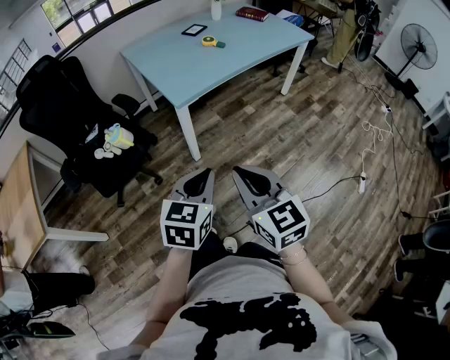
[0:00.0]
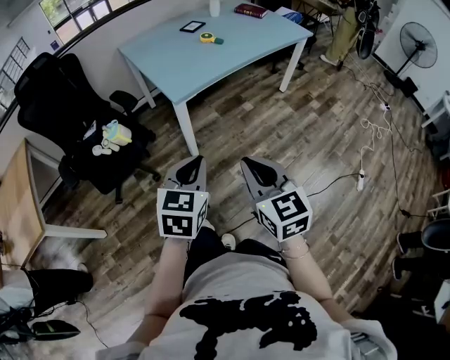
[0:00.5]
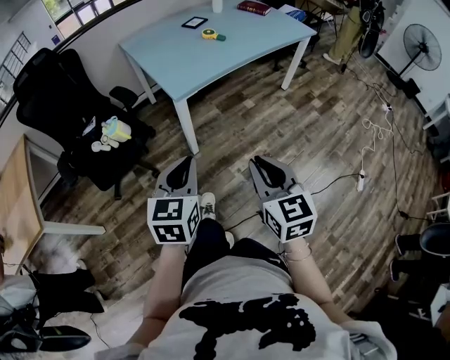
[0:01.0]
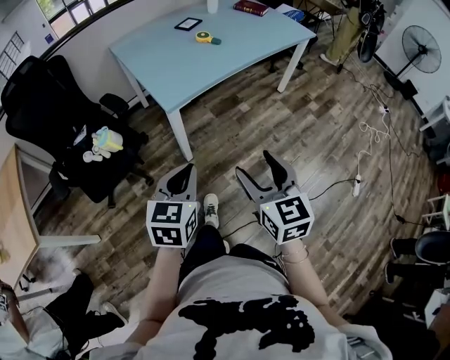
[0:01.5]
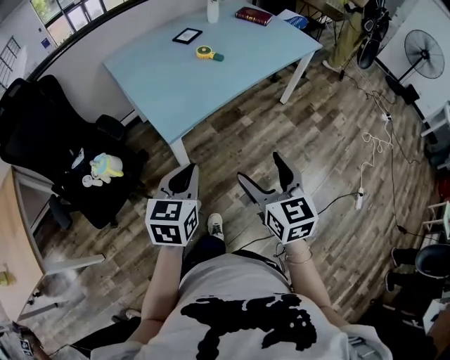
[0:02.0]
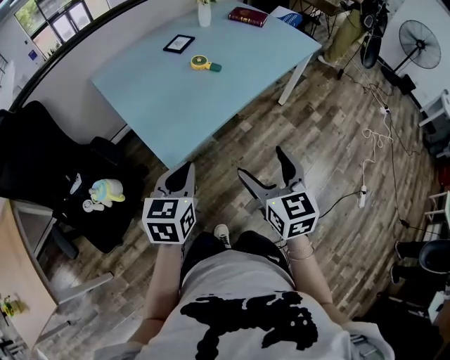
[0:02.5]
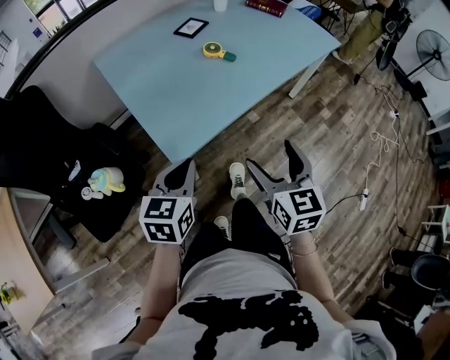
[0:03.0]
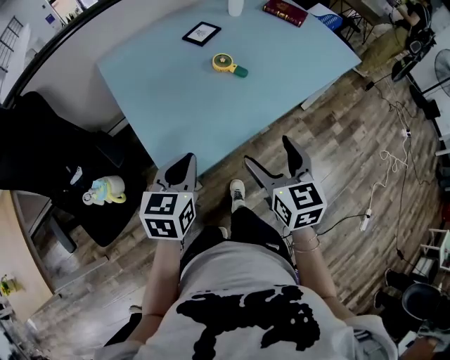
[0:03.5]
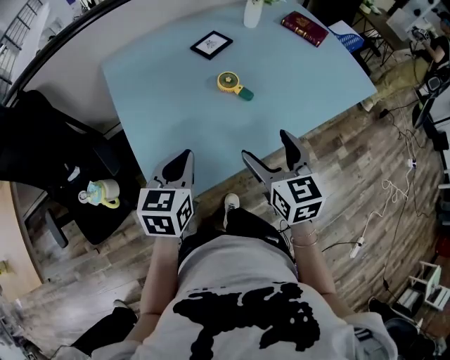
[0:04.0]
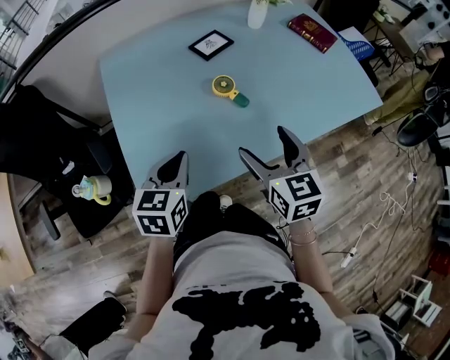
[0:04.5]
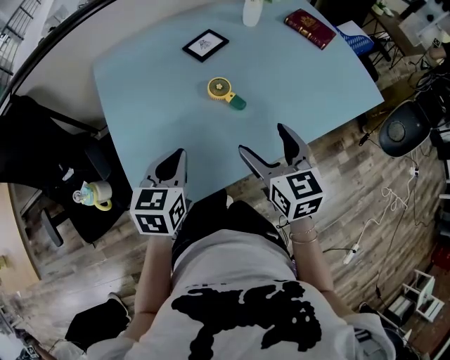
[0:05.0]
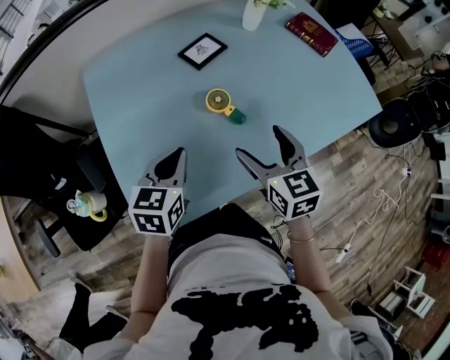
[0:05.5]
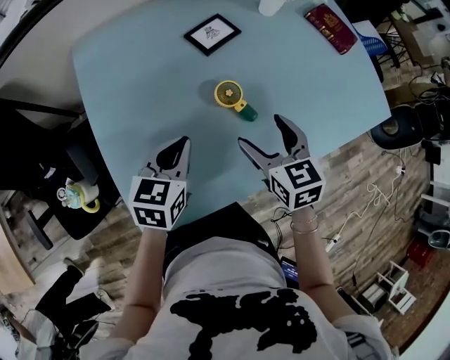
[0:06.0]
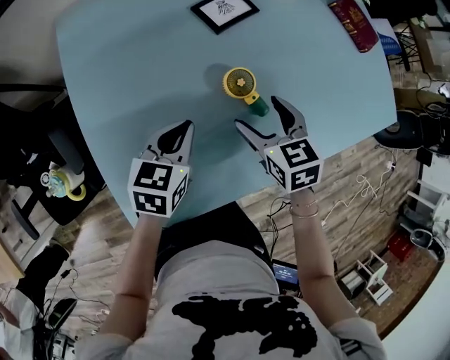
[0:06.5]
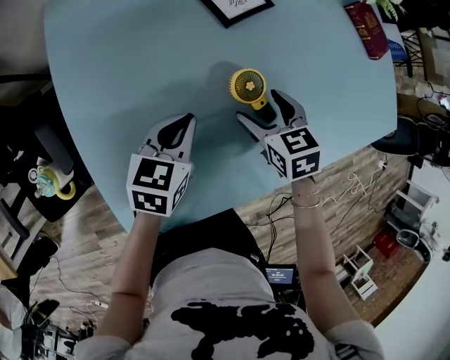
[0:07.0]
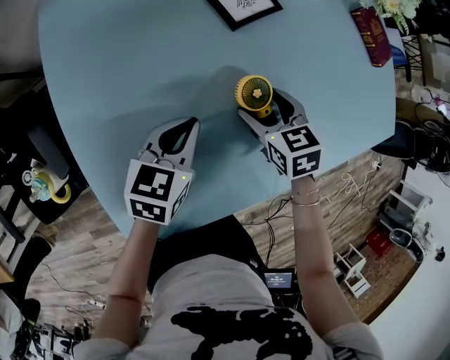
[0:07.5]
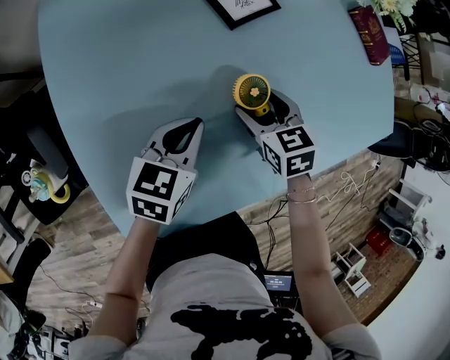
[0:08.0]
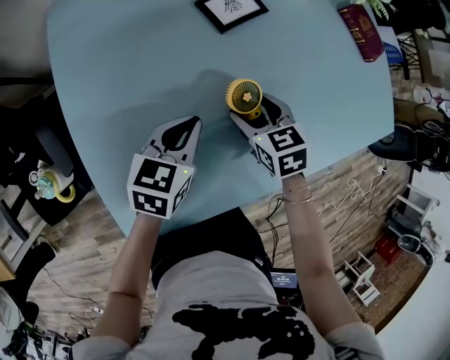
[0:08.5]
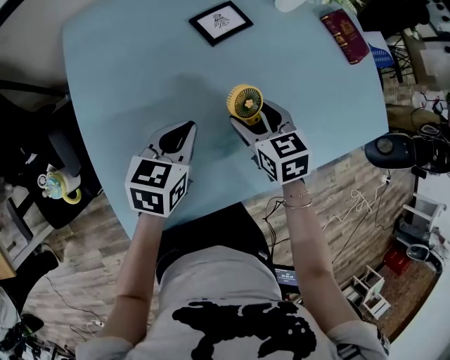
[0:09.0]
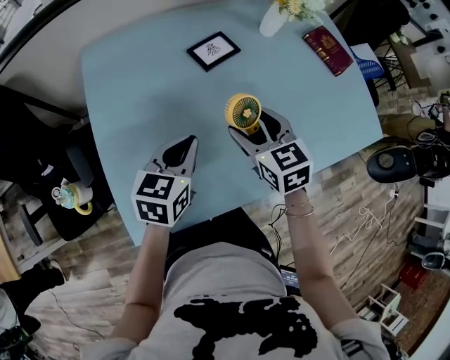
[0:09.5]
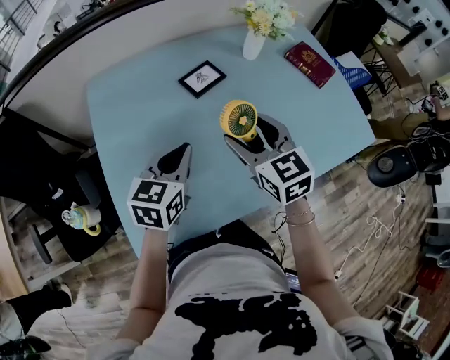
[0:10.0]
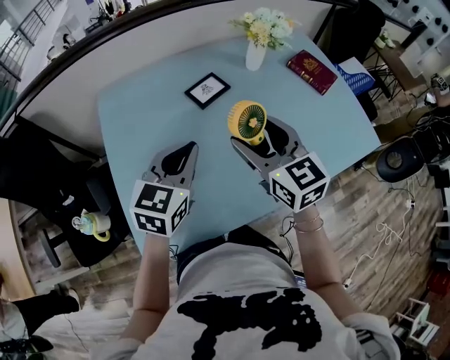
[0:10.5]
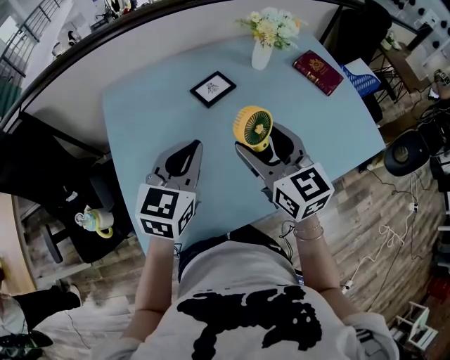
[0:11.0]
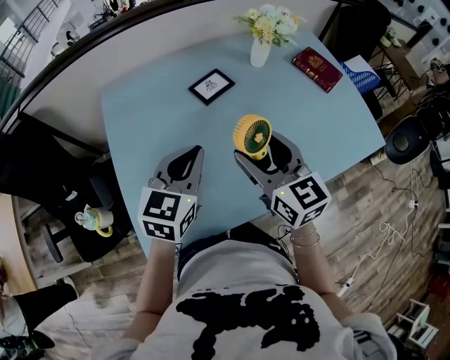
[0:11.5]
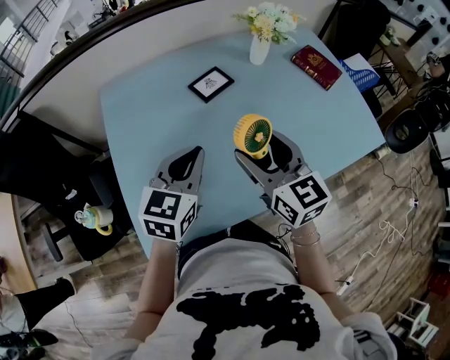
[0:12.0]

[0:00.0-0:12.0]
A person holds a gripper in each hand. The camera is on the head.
0:00.0 to 0:02.0: The two grippers go roughly 20 cm forward. The right gripper opens its fingers.
0:02.0 to 0:04.0: The grippers both shift forward by roughly 35 cm.
0:04.0 to 0:06.0: Both grippers move forward and downward, about 20 cm.
0:06.0 to 0:08.0: The right gripper shifts roughly 15 cm downward and forward. The left gripper goes about 10 cm downward and forward.
0:08.0 to 0:10.0: Both grippers travel together upward, some 20 cm. The right gripper points its fingers approximately 30 degrees further upward.
0:10.0 to 0:12.0: The left gripper ends up about 5 cm from where it was. The right gripper moves approximately 5 cm.

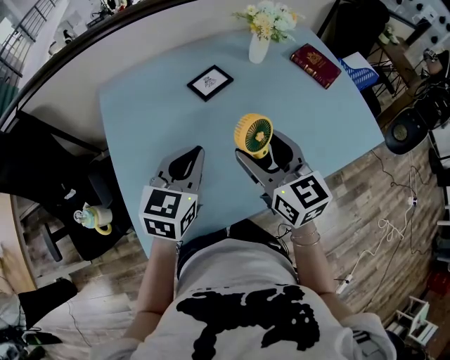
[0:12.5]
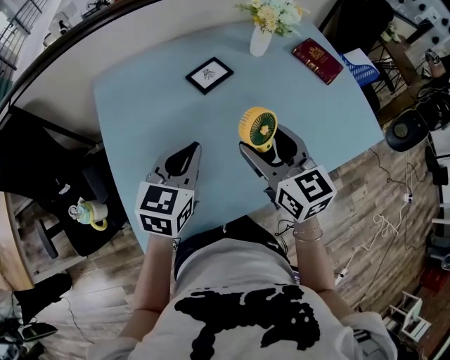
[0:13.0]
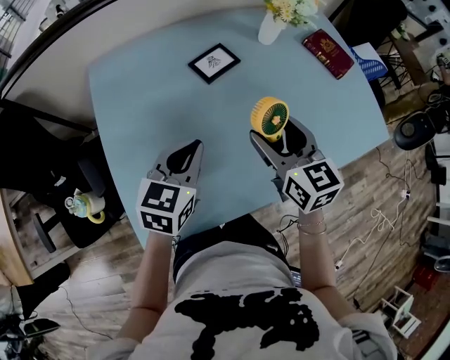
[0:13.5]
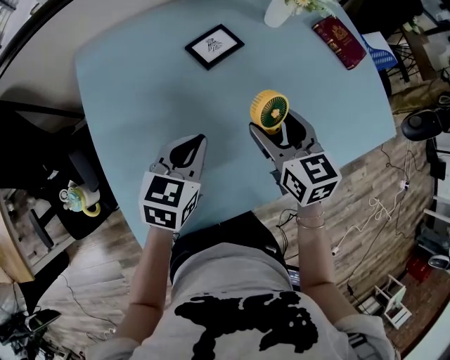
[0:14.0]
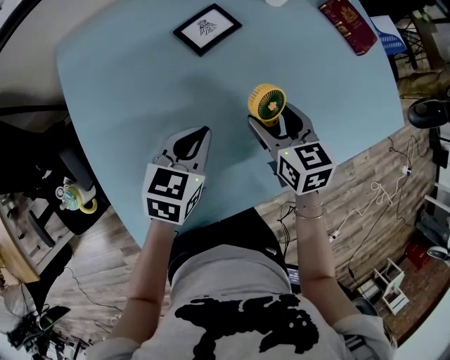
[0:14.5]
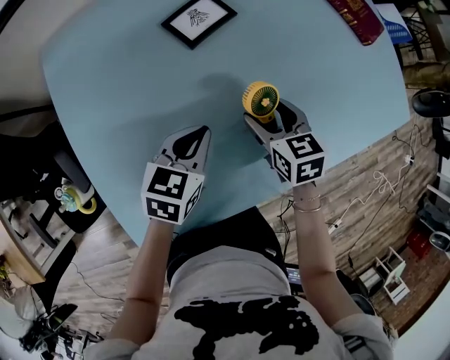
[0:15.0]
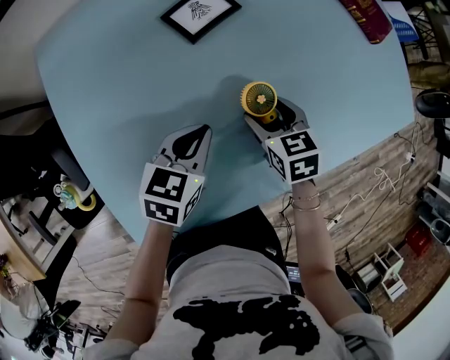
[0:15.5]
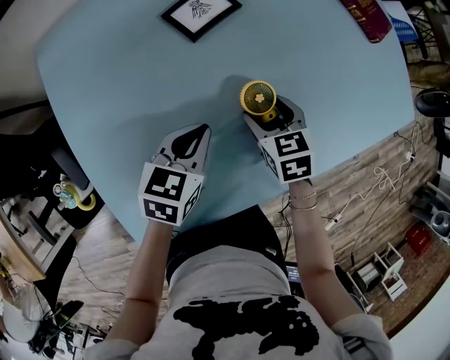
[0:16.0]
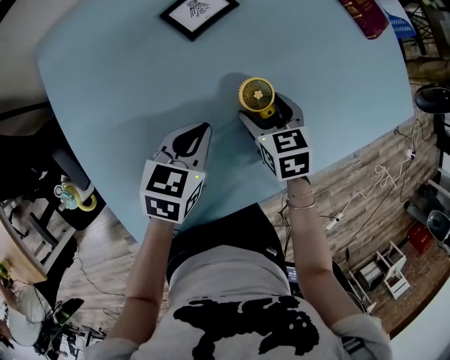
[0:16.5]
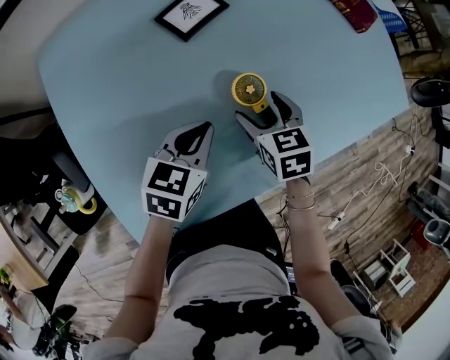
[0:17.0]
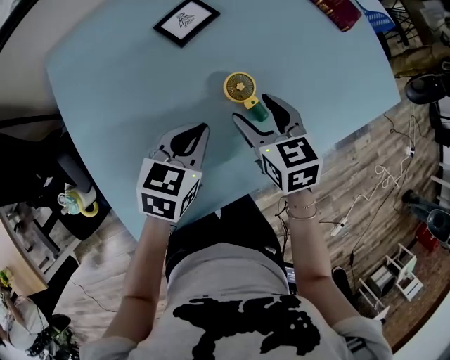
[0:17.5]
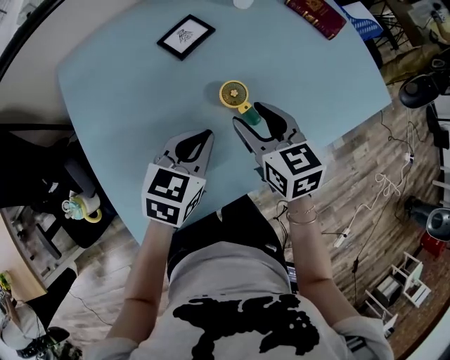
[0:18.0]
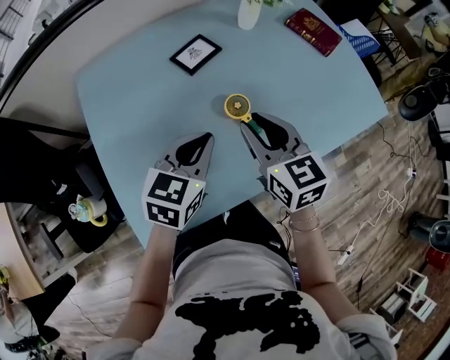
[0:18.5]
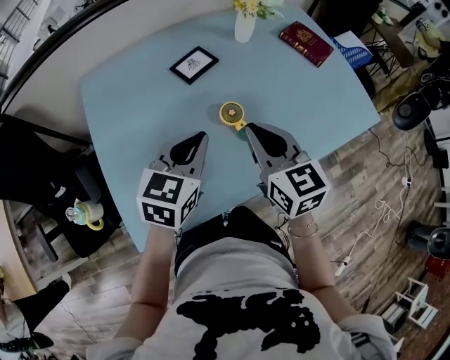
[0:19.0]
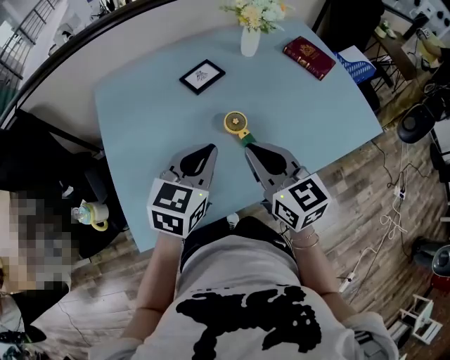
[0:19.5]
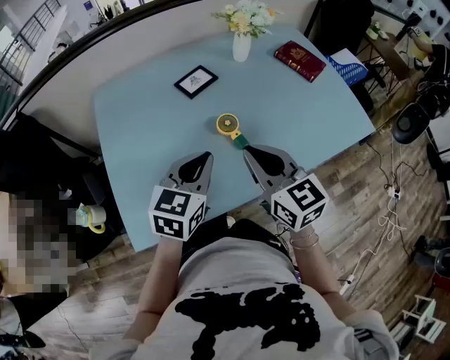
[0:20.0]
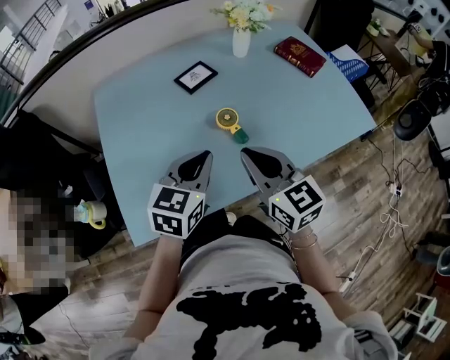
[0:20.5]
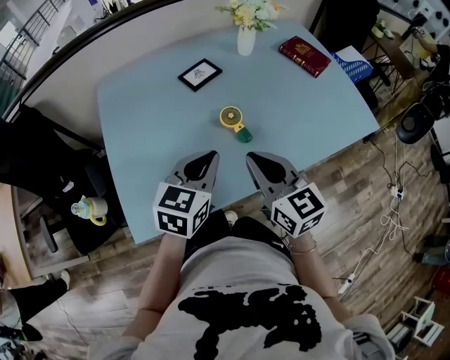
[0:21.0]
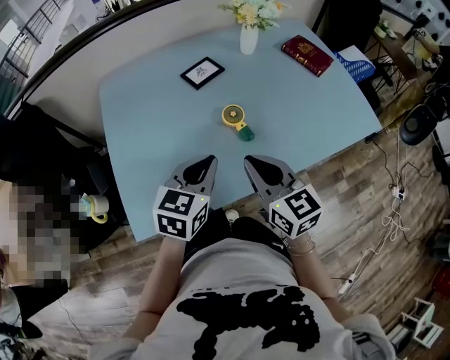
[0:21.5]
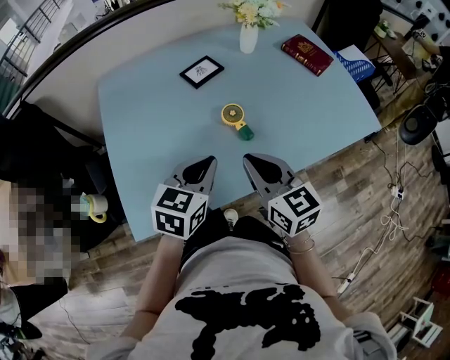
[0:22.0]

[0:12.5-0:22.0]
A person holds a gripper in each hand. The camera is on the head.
0:12.5 to 0:14.5: Both grippers move downward and forward, about 20 cm. The right gripper swivels roughly 30 degrees. The left gripper turns by some 20 degrees.
0:14.5 to 0:16.5: The right gripper shifts some 10 cm downward.
0:16.5 to 0:18.0: The right gripper is displaced upward by some 15 cm, and rotates approximately 20 degrees; the left gripper heads upward, covering some 10 cm.
0:18.0 to 0:20.0: Both grippers travel together upward and backward, roughly 15 cm. The right gripper turns by approximately 20 degrees, and closes.
0:20.0 to 0:22.0: The grippers move only a little.

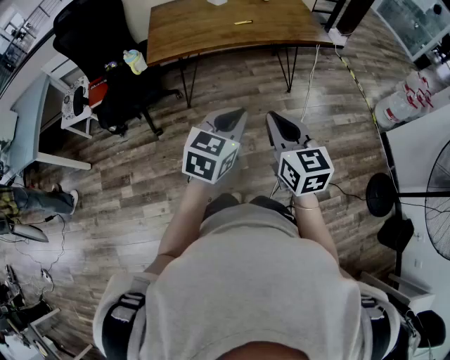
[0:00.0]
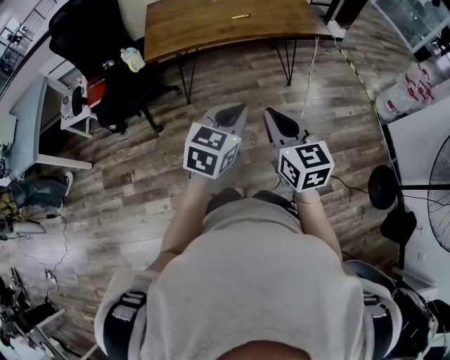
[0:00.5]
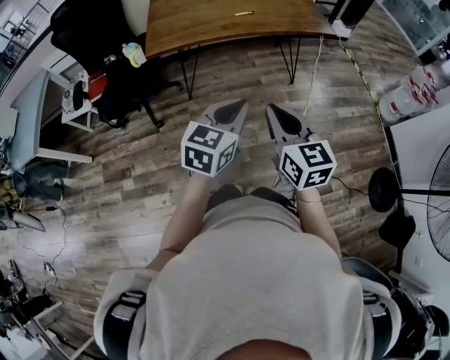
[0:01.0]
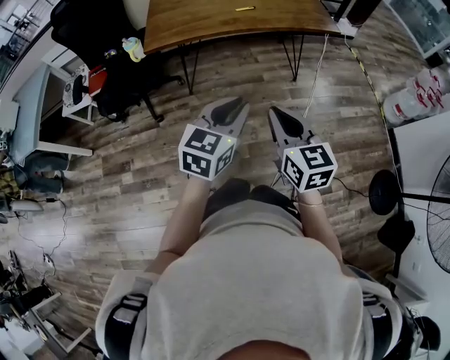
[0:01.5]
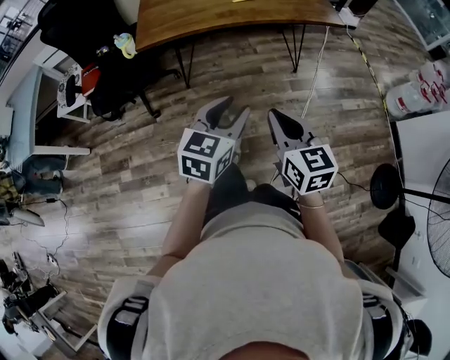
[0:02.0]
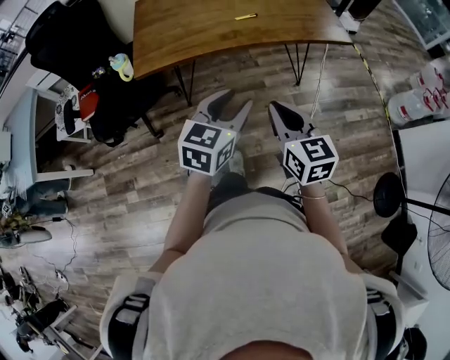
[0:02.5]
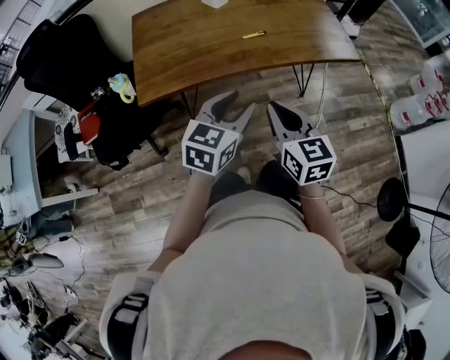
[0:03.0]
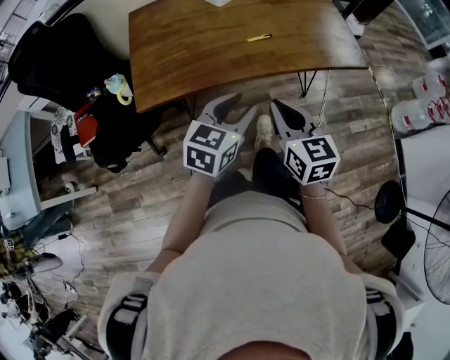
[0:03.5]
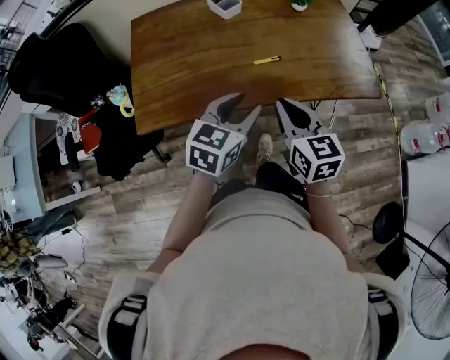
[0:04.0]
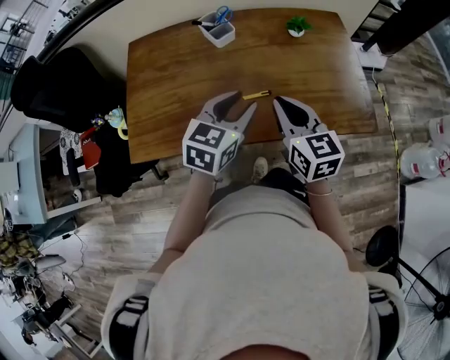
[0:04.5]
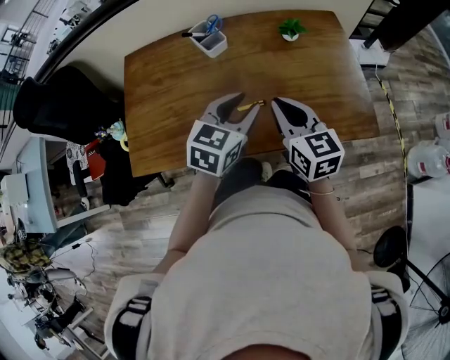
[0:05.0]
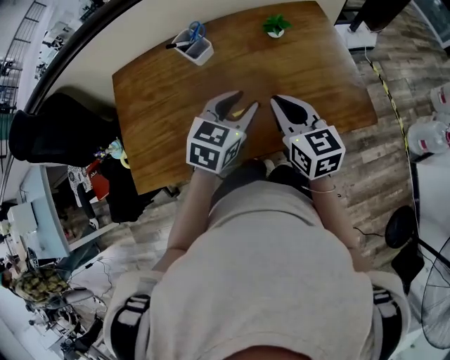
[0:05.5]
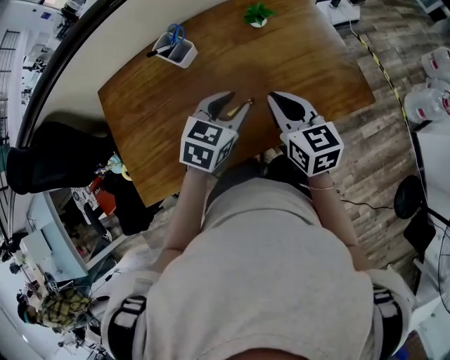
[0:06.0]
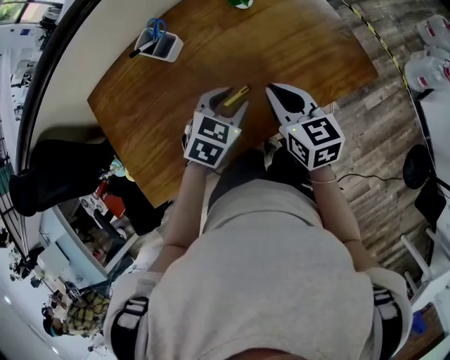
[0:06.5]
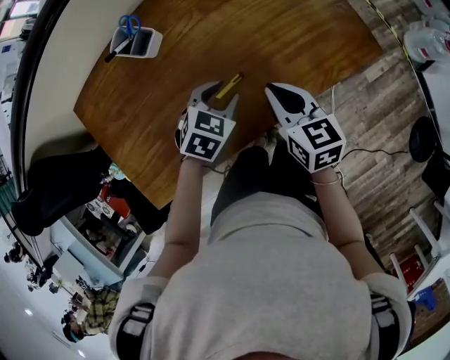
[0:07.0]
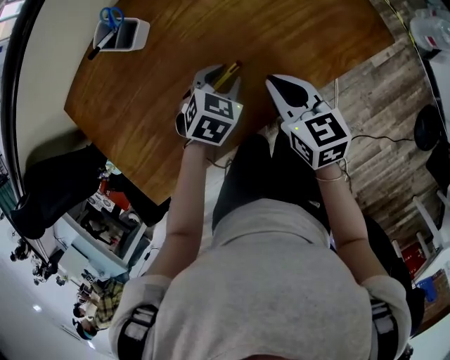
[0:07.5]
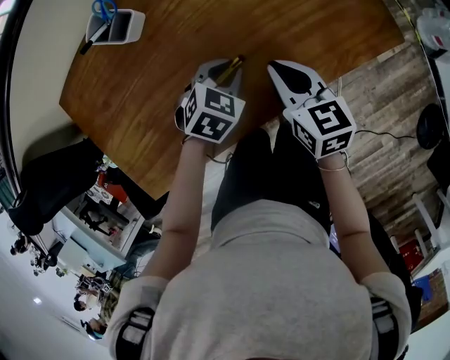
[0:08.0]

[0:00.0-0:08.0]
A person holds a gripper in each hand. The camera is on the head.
0:00.0 to 0:02.0: The right gripper is displaced downward by roughly 5 cm. The left gripper shifts about 5 cm forward, and opens its fingers.
0:02.0 to 0:04.0: Both grippers are carried forward, approximately 40 cm.
0:04.0 to 0:06.0: The grippers both shift forward by roughly 20 cm.
0:06.0 to 0:08.0: The two grippers go approximately 15 cm downward. The left gripper rotates about 30 degrees, and closes up.
